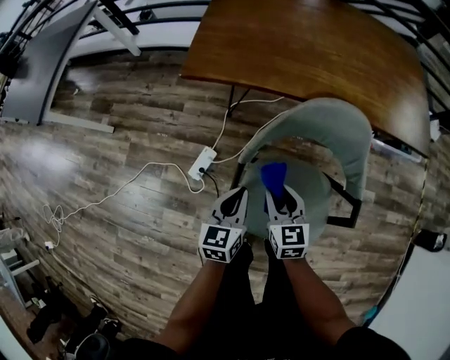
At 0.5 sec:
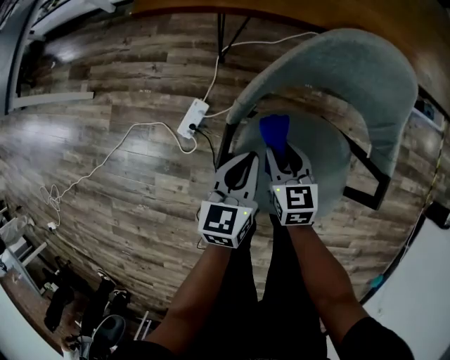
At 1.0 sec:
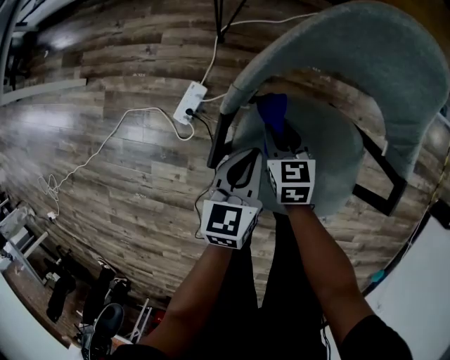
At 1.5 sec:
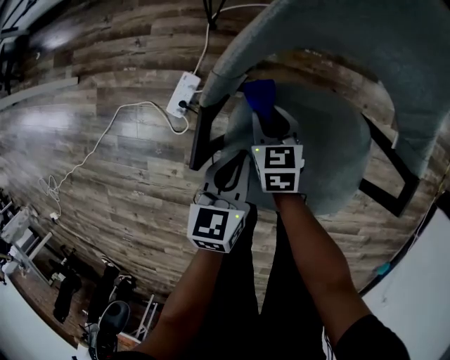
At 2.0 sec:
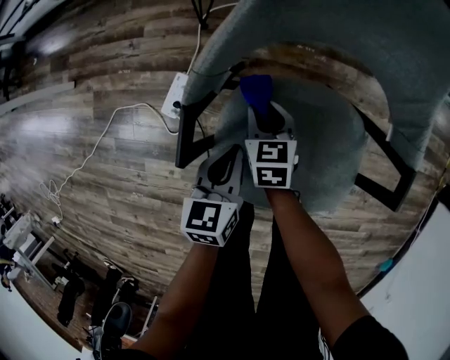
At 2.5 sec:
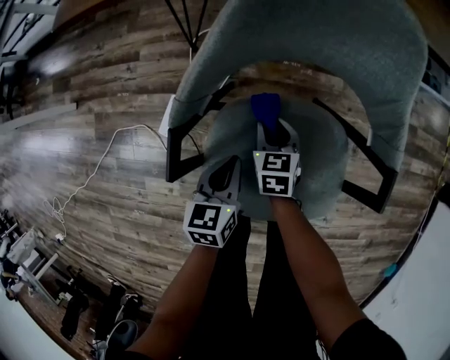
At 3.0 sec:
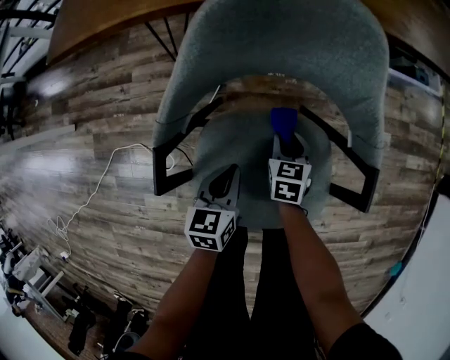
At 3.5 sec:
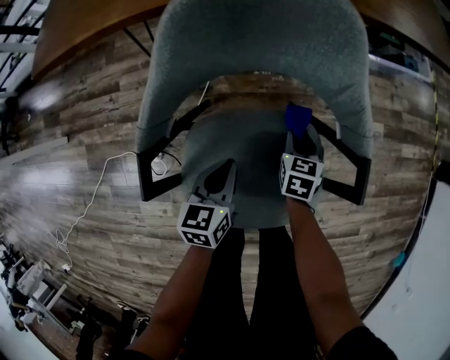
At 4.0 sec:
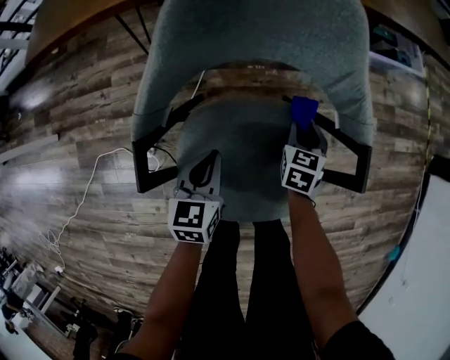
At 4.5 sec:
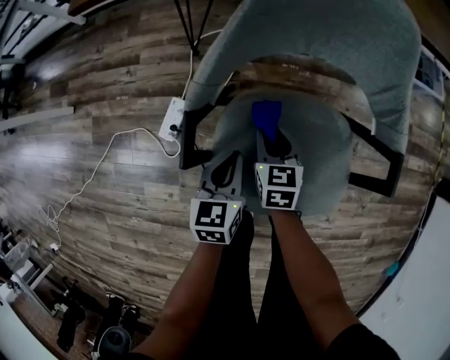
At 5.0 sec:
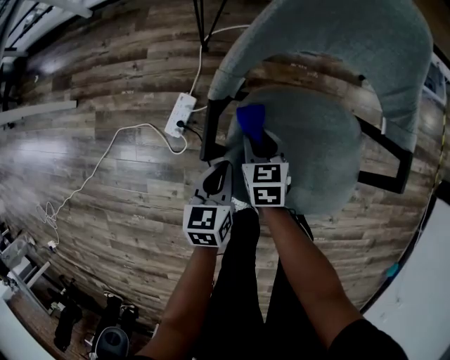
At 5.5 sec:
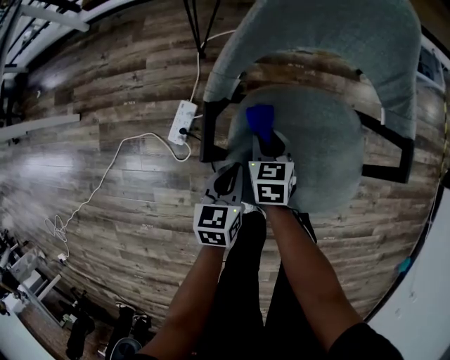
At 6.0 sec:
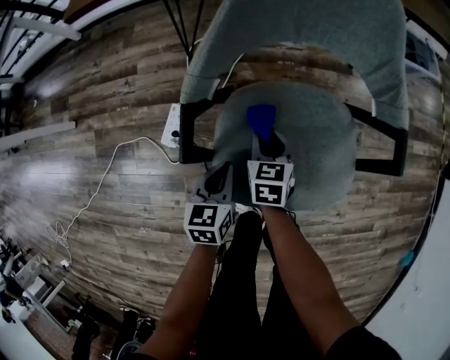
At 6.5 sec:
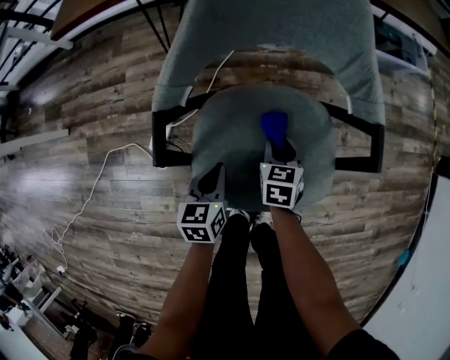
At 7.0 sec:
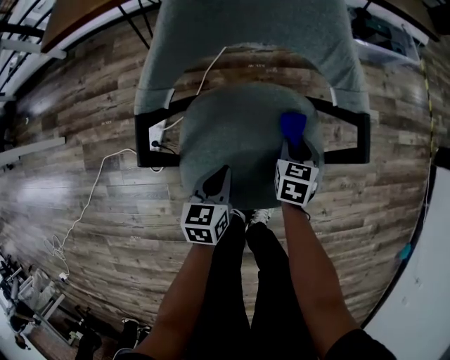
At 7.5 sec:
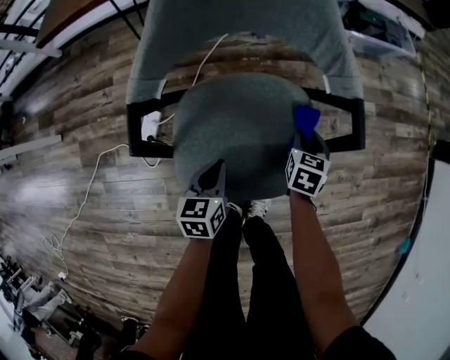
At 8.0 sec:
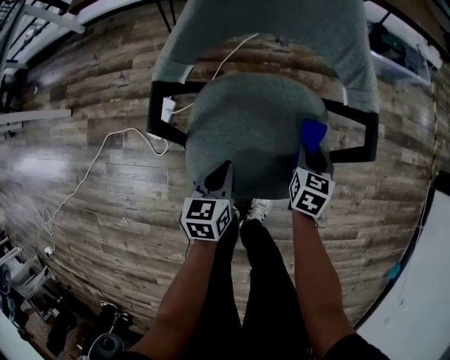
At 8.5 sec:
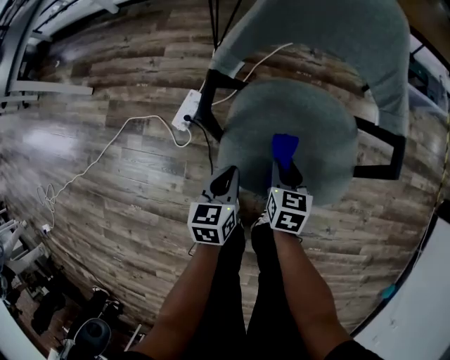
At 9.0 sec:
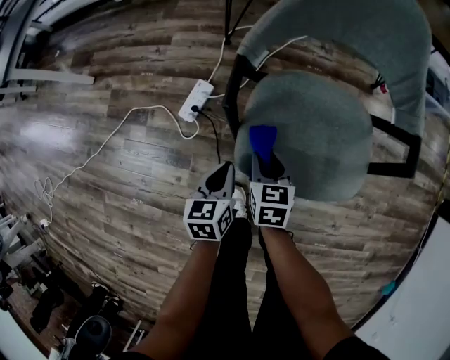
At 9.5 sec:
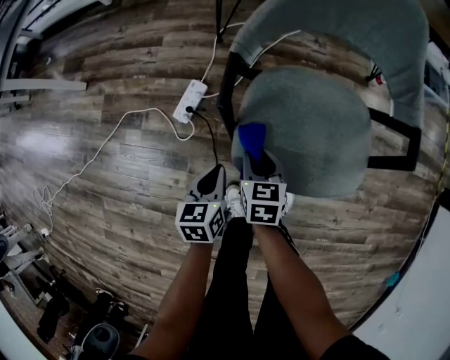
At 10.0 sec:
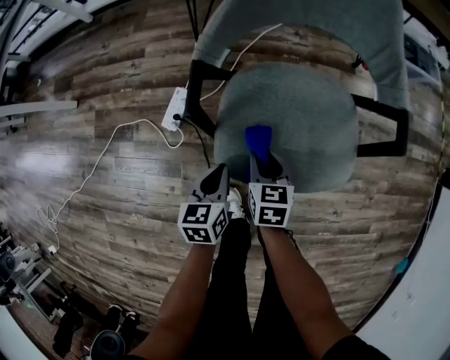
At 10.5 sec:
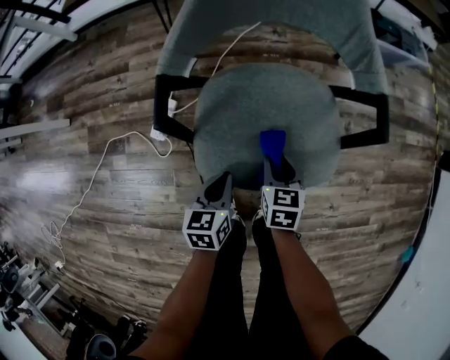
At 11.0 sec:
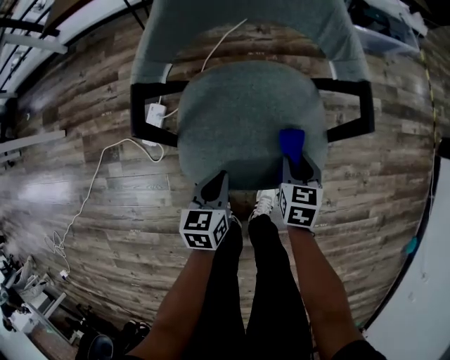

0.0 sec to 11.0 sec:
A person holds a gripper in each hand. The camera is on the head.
0.0 sec to 2.0 sec: The two grippers go some 25 cm downward.
2.0 sec to 3.5 sec: The right gripper shifts about 25 cm to the right, and swivels approximately 30 degrees; the left gripper moves to the right, roughly 10 cm.
3.5 sec to 5.5 sec: The left gripper travels to the left and backward by roughly 15 cm; the right gripper shifts some 25 cm to the left and backward.
5.5 sec to 7.5 sec: The left gripper heads to the right, covering roughly 10 cm, while the right gripper heads to the right, covering about 30 cm, and turns by some 30 degrees.
7.5 sec to 9.0 sec: The left gripper shifts by about 15 cm. The right gripper ends up roughly 35 cm from where it was, and turns by roughly 30 degrees.
9.0 sec to 11.0 sec: The left gripper shifts roughly 15 cm to the right; the right gripper moves to the right, about 25 cm.

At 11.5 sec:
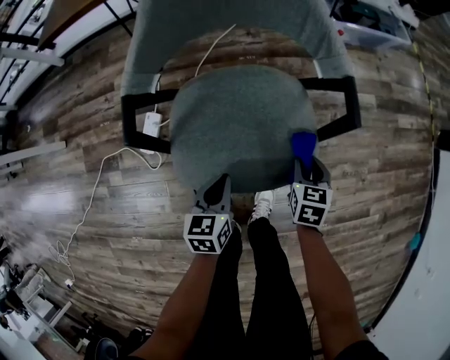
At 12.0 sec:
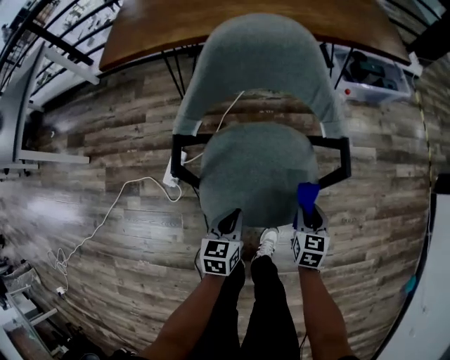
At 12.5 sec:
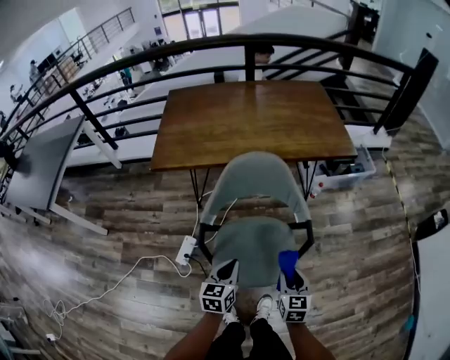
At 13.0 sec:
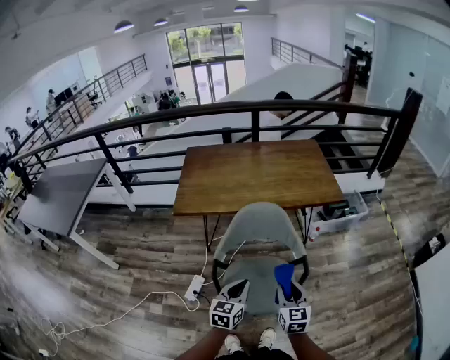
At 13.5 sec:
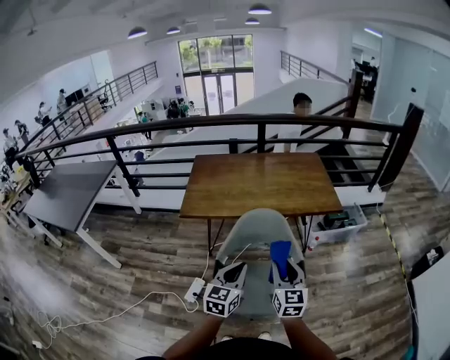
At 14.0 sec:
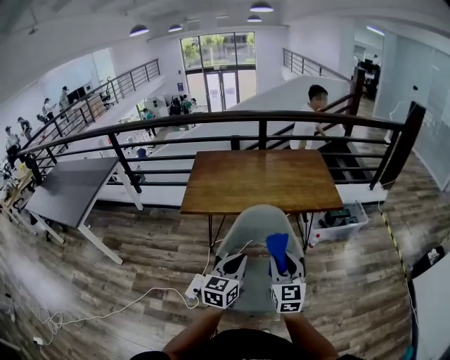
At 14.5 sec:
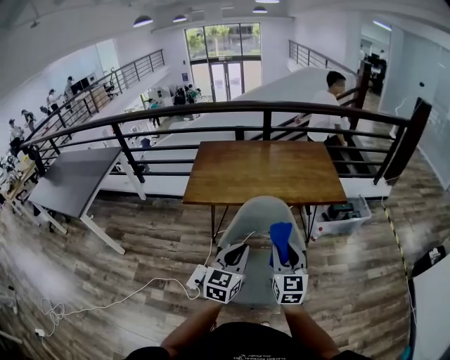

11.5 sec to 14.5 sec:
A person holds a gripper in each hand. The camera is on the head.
11.5 sec to 13.0 sec: Both grippers move upward, roughly 40 cm. The right gripper tips its fingers upward by roughly 30 degrees. Meanwhile the left gripper swivels about 20 degrees.
13.0 sec to 14.5 sec: Both grippers move upward, about 15 cm.

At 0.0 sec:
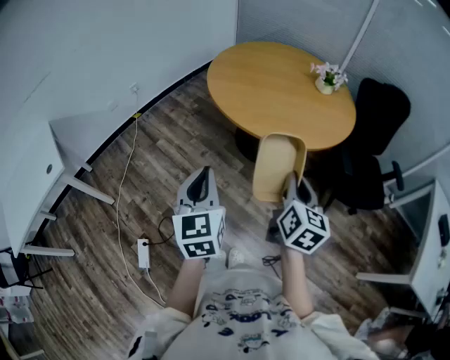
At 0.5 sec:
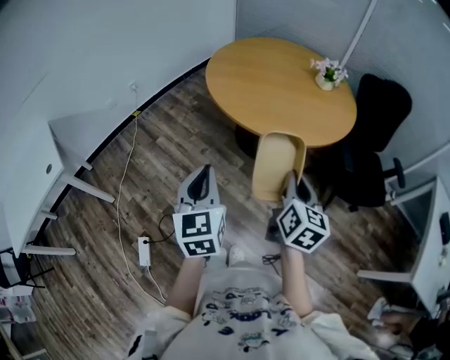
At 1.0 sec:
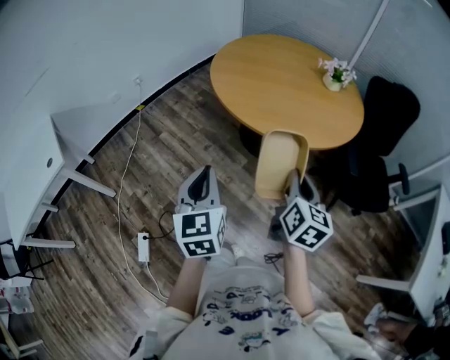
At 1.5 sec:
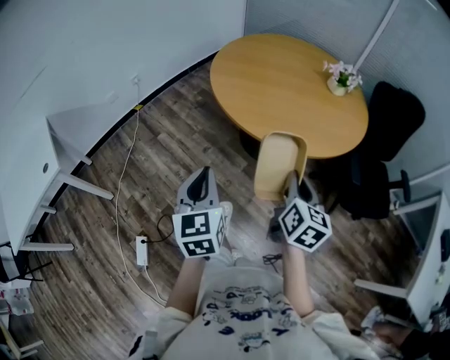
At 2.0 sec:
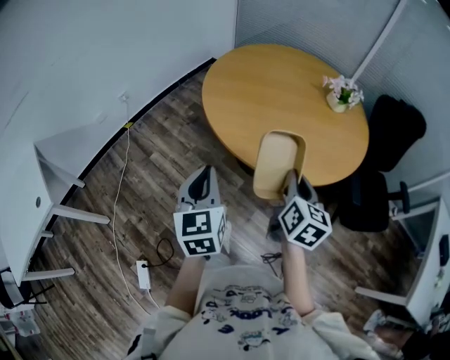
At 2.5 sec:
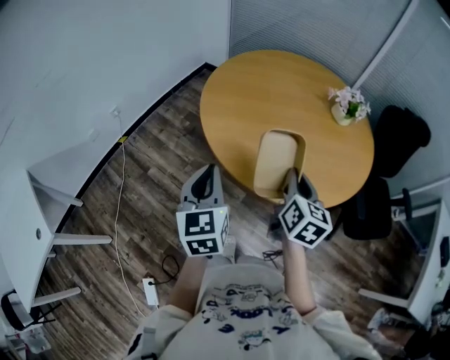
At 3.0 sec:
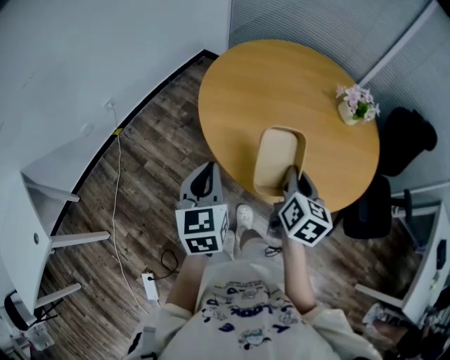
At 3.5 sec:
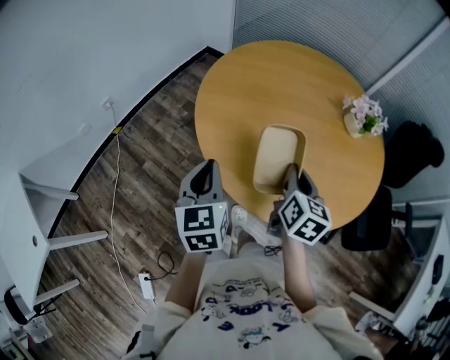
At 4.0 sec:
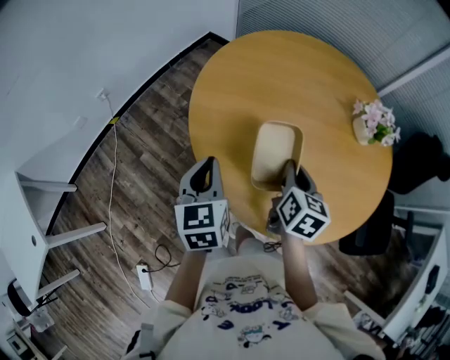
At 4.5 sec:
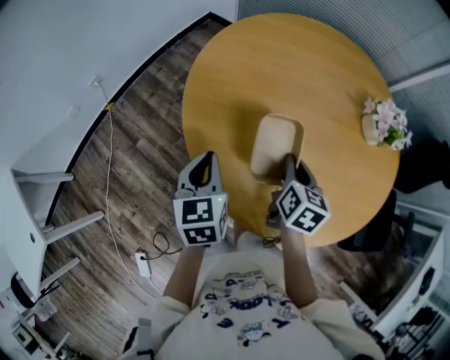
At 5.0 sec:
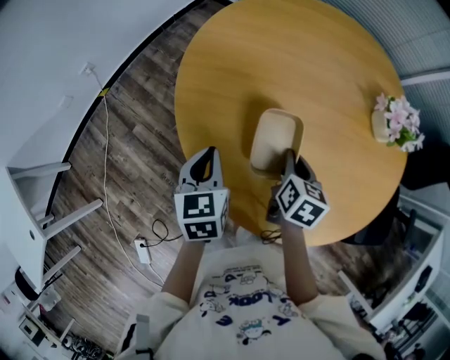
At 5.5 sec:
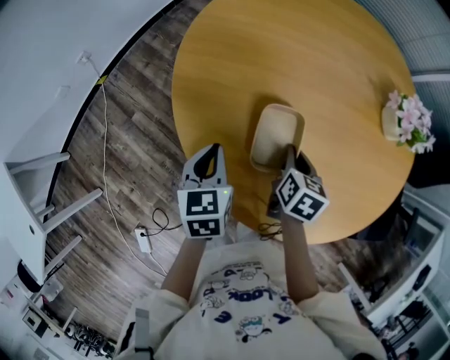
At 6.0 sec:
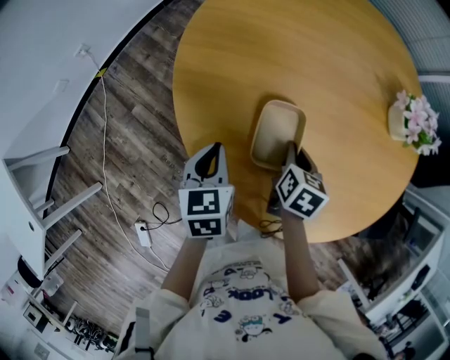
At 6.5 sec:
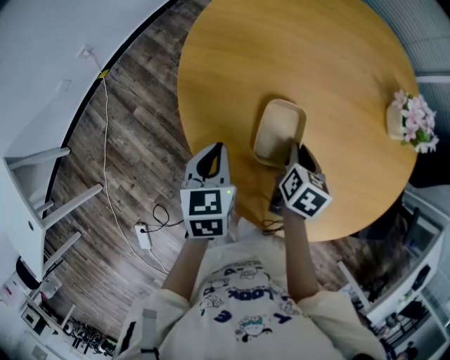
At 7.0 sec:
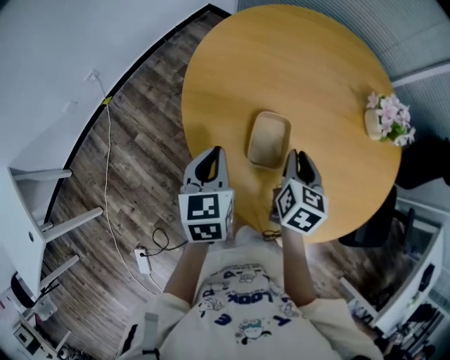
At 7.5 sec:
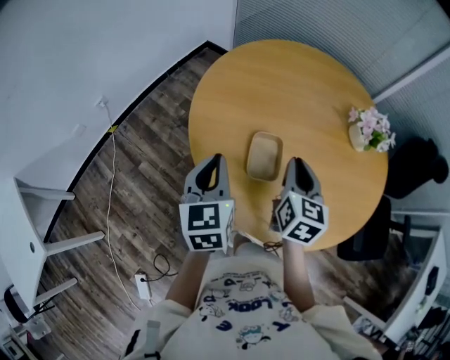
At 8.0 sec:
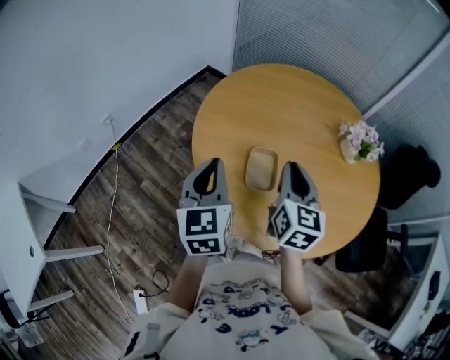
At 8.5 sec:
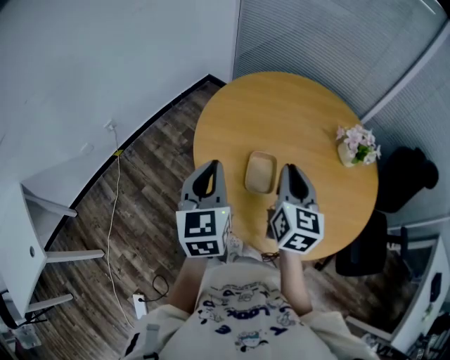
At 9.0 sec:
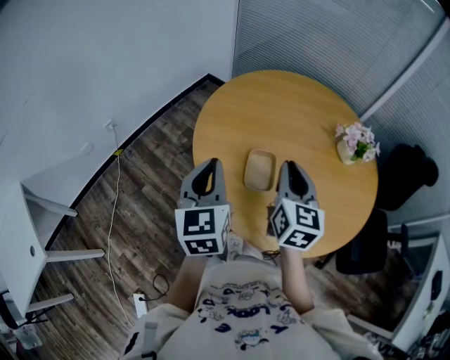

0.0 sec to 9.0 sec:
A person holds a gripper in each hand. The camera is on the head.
0.0 sec to 2.0 sec: Both grippers move forward, some 20 cm.
2.0 sec to 4.5 sec: The grippers both shift forward by approximately 35 cm.
4.5 sec to 7.0 sec: The left gripper goes downward and returns, approximately 10 cm each way. The right gripper goes downward and returns, approximately 10 cm each way.
7.0 sec to 9.0 sec: The two grippers go roughly 15 cm upward. The right gripper swivels roughly 30 degrees; the left gripper changes its angle by some 20 degrees.

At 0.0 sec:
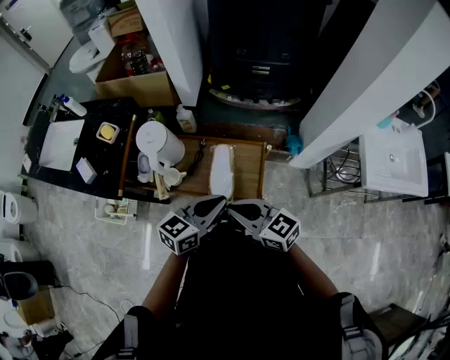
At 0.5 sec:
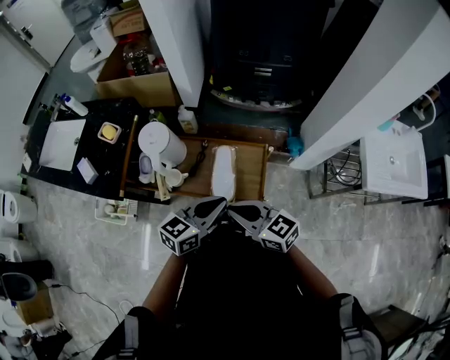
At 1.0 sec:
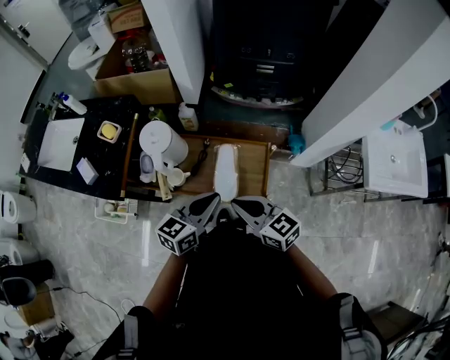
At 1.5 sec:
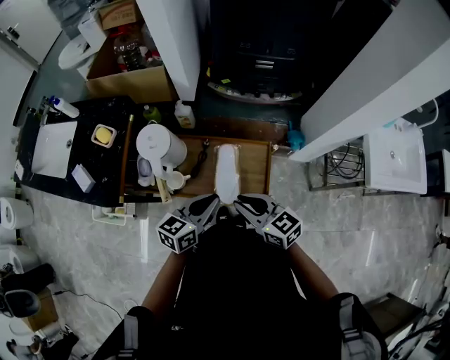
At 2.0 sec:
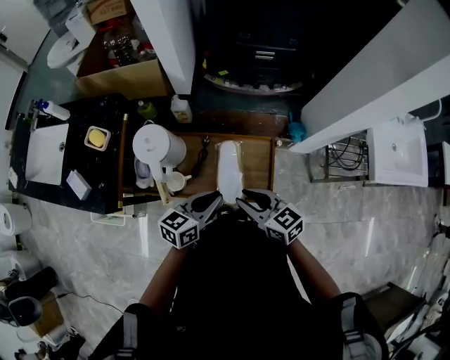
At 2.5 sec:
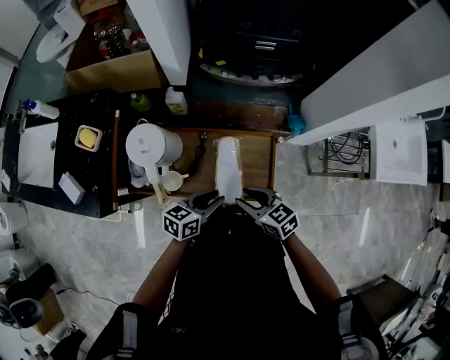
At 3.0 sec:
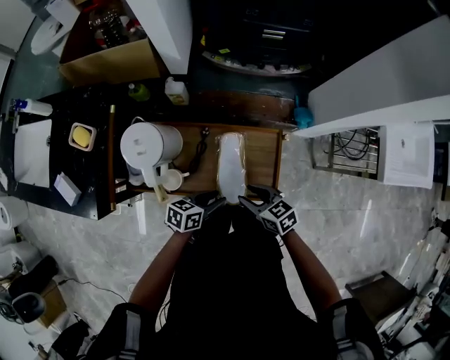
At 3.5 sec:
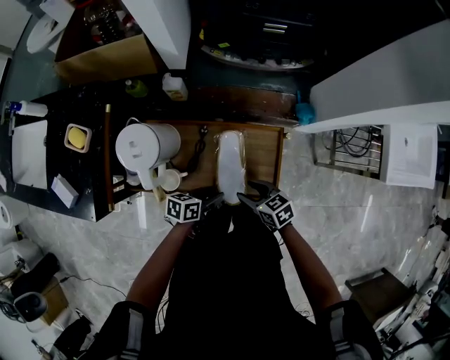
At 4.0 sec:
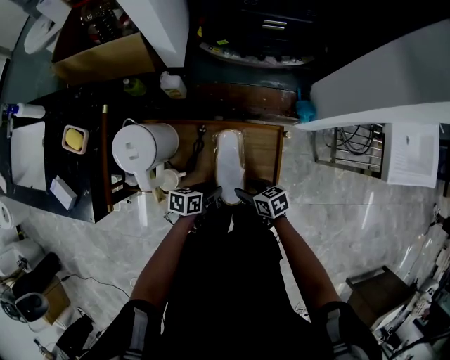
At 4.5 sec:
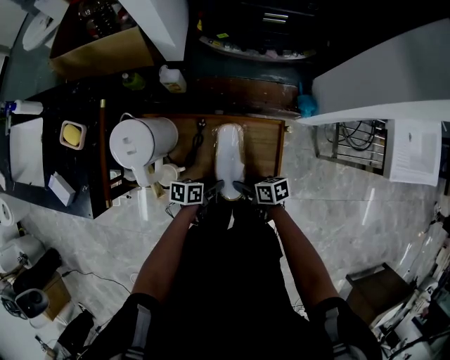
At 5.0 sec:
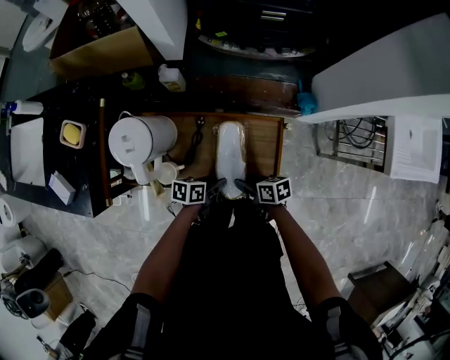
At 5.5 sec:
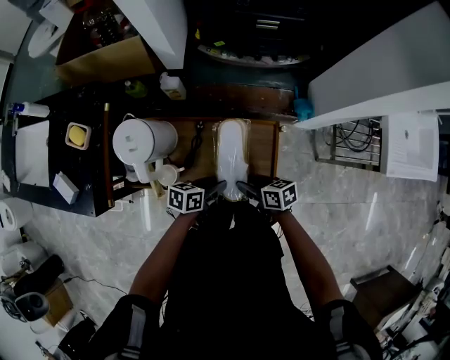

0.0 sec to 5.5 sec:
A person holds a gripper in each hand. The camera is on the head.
0.0 sec to 2.0 sec: The right gripper is displaced downward and forward by about 10 cm, and opens its fingers. The left gripper is displaced downward, forward and to the left by some 15 cm.
2.0 sec to 3.5 sec: The grippers both shift downward by roughly 20 cm. The left gripper swivels approximately 30 degrees, and opens up, while the right gripper changes its angle by roughly 20 degrees, and opens.
3.5 sec to 5.5 sec: The left gripper goes downward and returns, roughly 5 cm each way. Meanwhile the right gripper swivels some 20 degrees.
